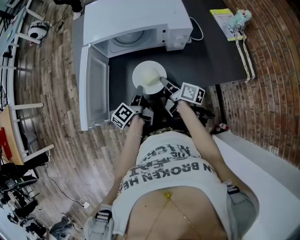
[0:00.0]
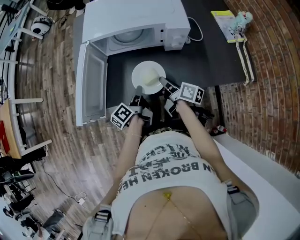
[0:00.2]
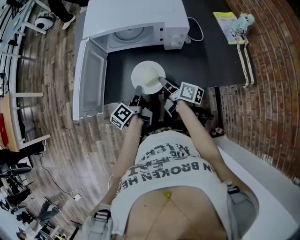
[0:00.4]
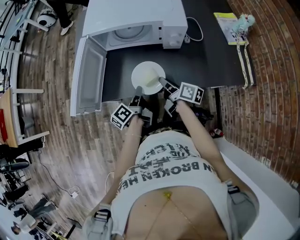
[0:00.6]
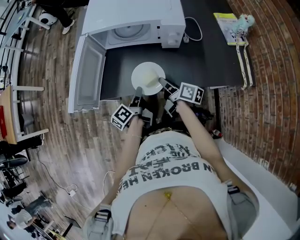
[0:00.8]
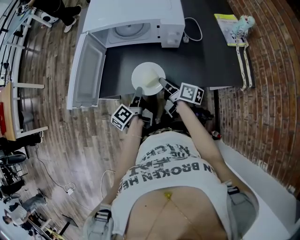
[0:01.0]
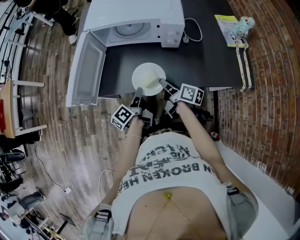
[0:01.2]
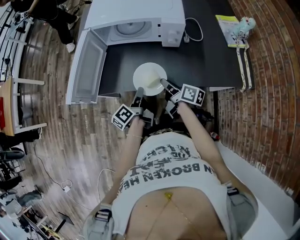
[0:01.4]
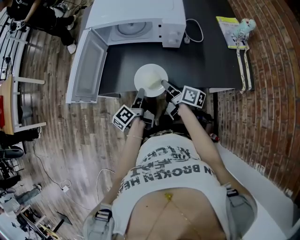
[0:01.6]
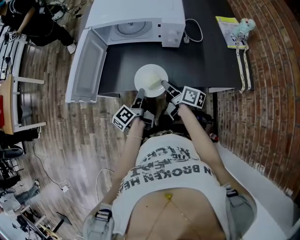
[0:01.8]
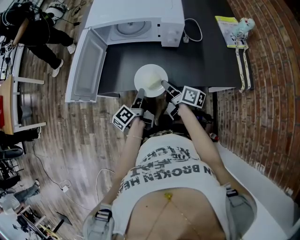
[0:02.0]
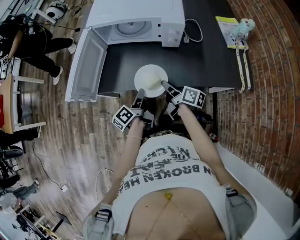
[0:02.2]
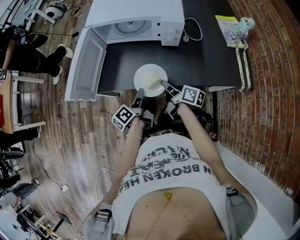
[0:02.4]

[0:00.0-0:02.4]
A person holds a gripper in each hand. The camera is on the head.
0.0 to 1.2 s: Both grippers move backward, approximately 5 cm.
1.2 to 2.4 s: The grippers stay close to where they were, moving slightly.

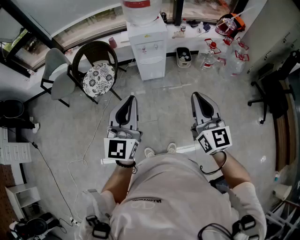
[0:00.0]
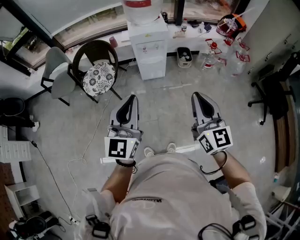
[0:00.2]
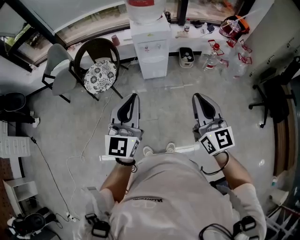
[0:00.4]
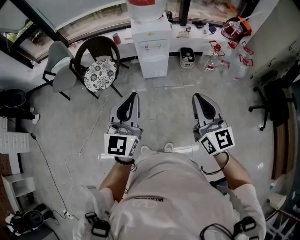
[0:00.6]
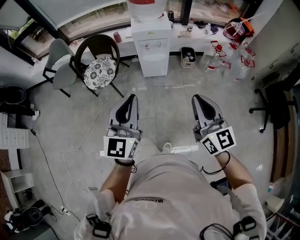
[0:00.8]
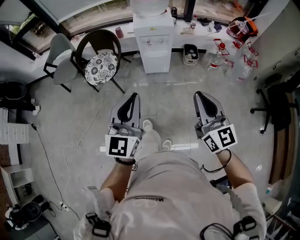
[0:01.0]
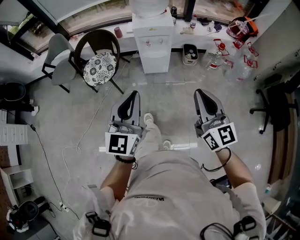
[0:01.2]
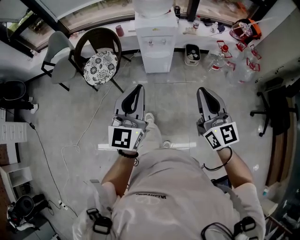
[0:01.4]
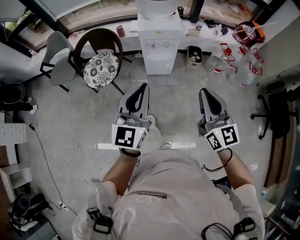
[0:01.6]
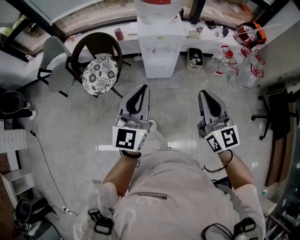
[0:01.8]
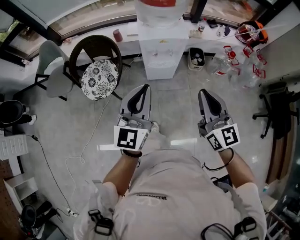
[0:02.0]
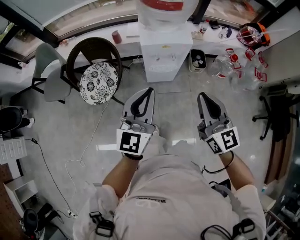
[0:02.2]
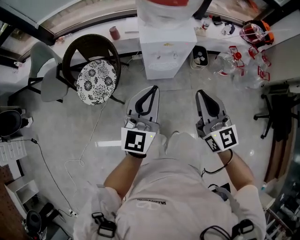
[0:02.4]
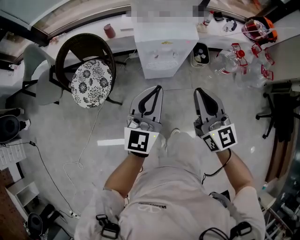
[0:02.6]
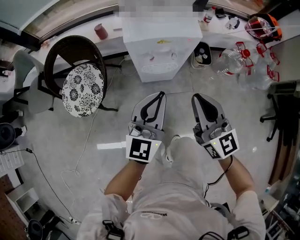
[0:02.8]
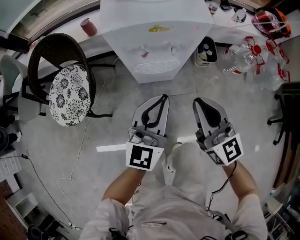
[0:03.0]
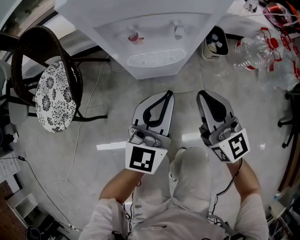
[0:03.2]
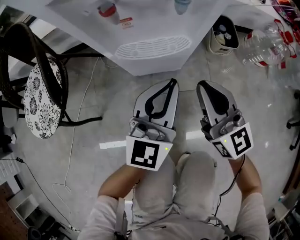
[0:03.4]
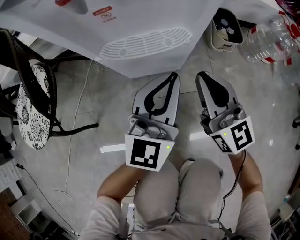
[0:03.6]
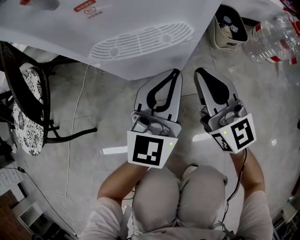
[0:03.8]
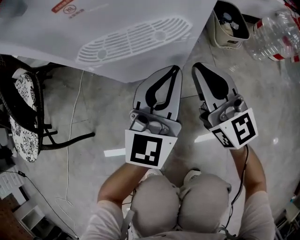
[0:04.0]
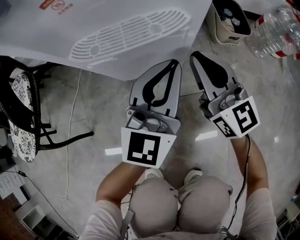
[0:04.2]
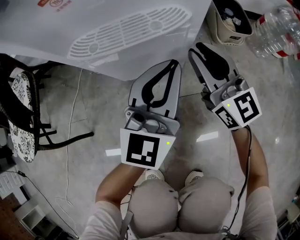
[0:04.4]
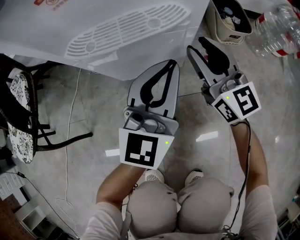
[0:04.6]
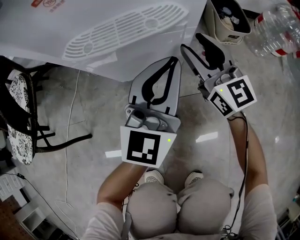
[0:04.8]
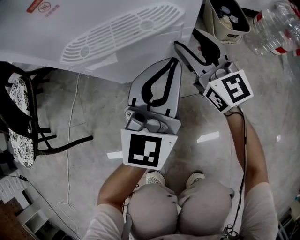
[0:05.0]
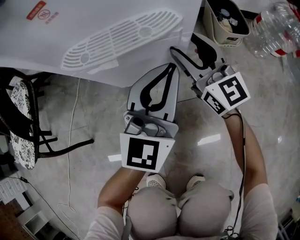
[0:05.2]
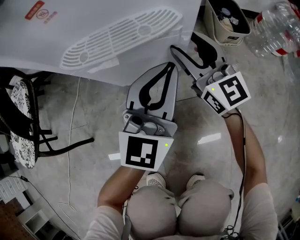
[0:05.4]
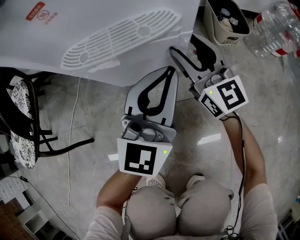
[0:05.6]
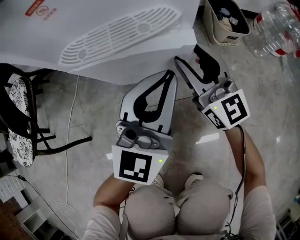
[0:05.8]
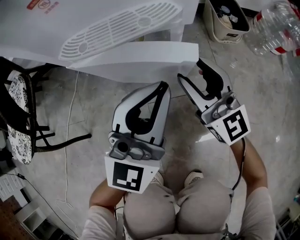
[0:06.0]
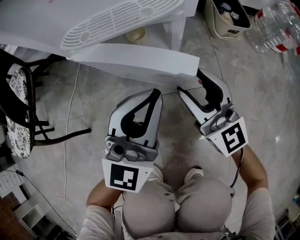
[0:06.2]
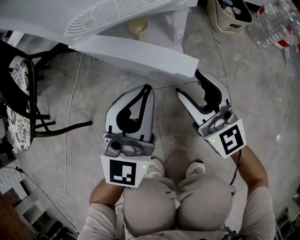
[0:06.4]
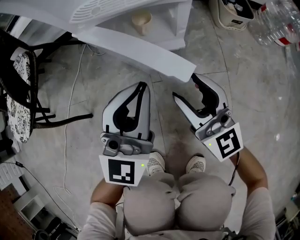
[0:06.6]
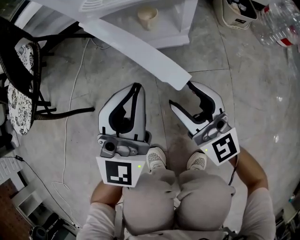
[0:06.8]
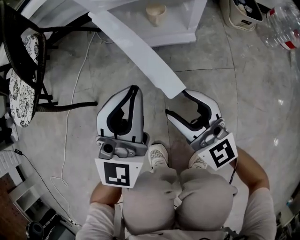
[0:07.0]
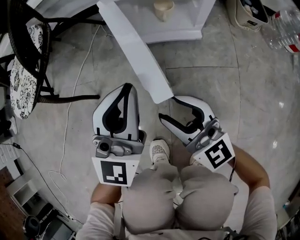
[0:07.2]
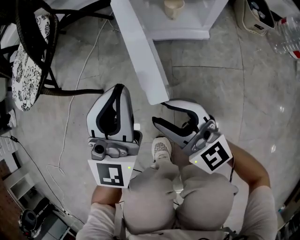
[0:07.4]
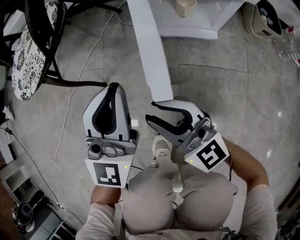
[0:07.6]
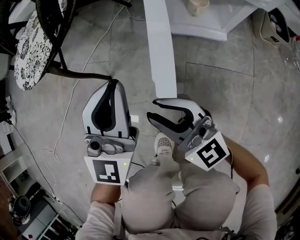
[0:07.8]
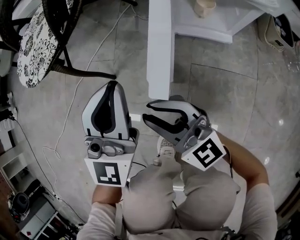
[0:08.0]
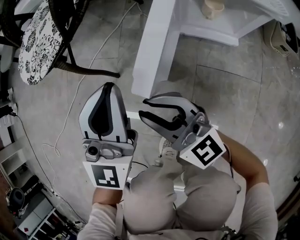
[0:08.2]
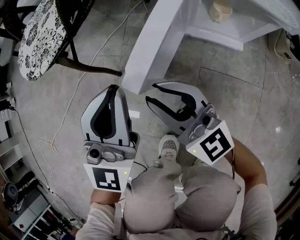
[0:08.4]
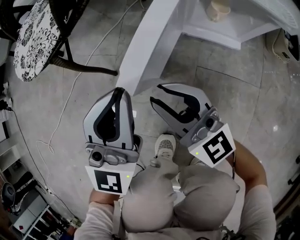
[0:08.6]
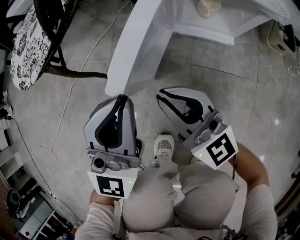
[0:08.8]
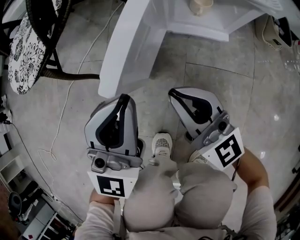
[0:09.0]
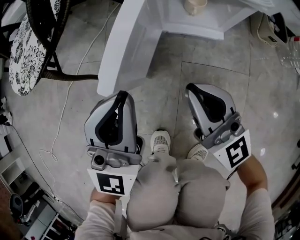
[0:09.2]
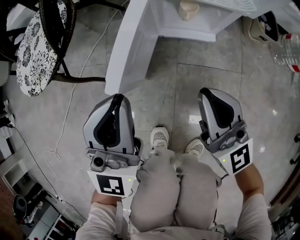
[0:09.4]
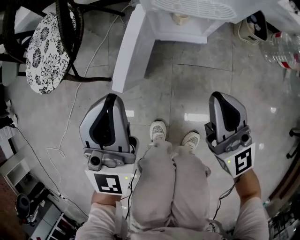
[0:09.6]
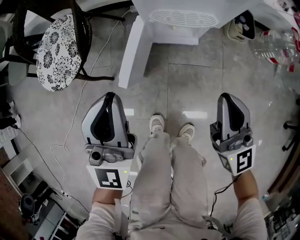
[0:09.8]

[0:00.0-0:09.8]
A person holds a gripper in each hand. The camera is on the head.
0.0 to 1.4 s: Both grippers travel together forward, roughly 10 cm.
1.4 to 2.8 s: The grippers both shift forward and downward by about 40 cm.
2.8 to 4.2 s: The two grippers go some 50 cm downward.
4.2 to 5.6 s: The right gripper goes approximately 5 cm forward, and opens its fingers.
5.6 to 7.0 s: The grippers both shift backward and to the left by about 25 cm.
7.0 to 8.4 s: Both grippers travel together to the left, about 20 cm. The right gripper turns by roughly 20 degrees, and closes its fingers. Meanwhile the left gripper rotates approximately 20 degrees.
8.4 to 9.8 s: The left gripper goes approximately 25 cm upward. The right gripper goes roughly 35 cm to the right and upward, changes its angle by about 40 degrees, and closes.

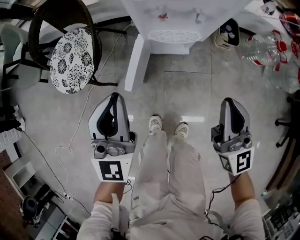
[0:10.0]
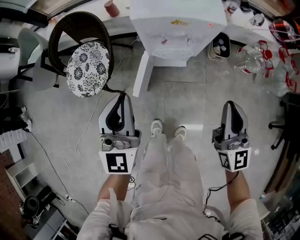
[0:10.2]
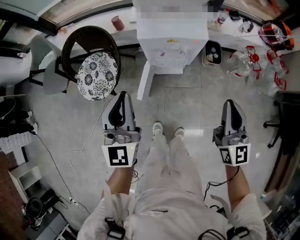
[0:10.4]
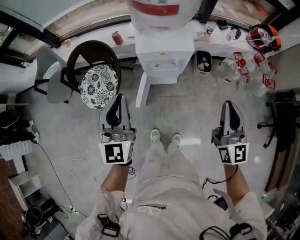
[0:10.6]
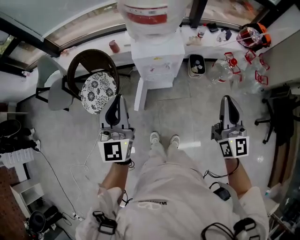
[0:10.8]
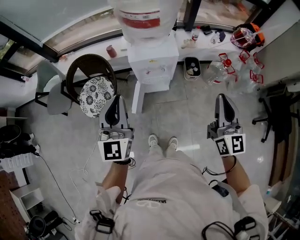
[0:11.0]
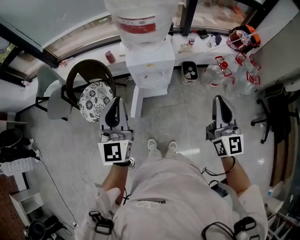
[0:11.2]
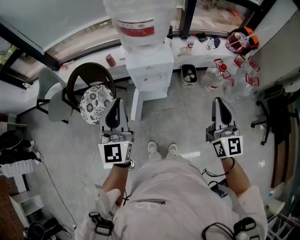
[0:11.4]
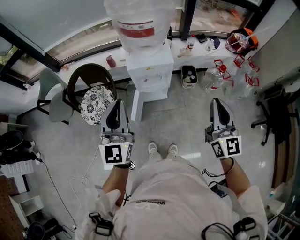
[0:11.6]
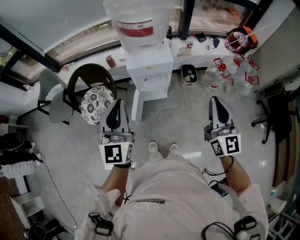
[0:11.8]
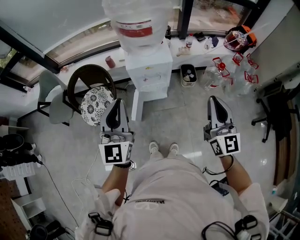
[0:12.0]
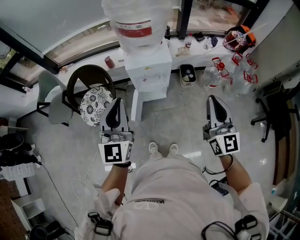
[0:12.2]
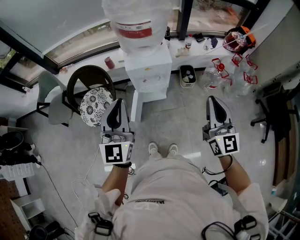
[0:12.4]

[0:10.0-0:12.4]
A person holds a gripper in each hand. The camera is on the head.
10.0 to 11.2 s: Both grippers move upward, some 40 cm.
11.2 to 12.4 s: The grippers move only a little.

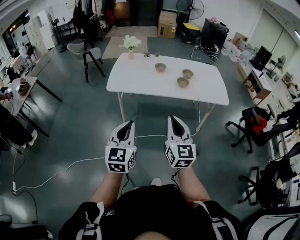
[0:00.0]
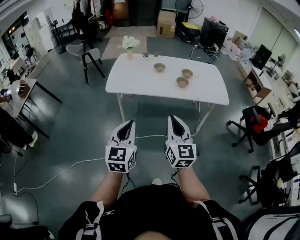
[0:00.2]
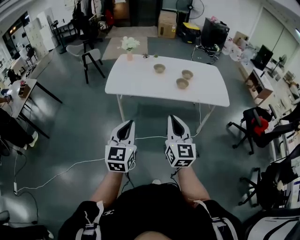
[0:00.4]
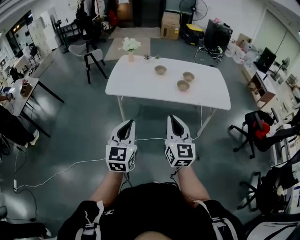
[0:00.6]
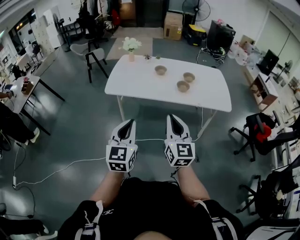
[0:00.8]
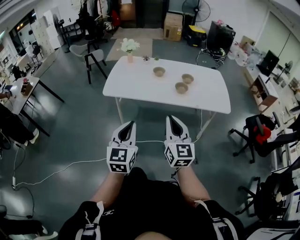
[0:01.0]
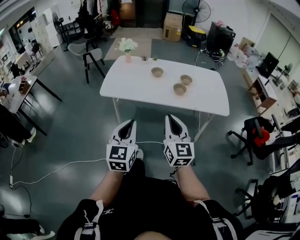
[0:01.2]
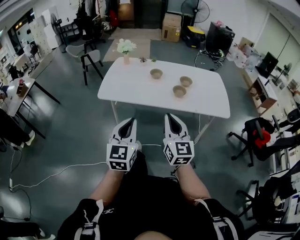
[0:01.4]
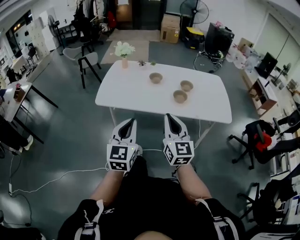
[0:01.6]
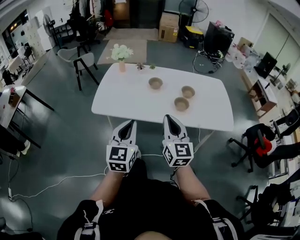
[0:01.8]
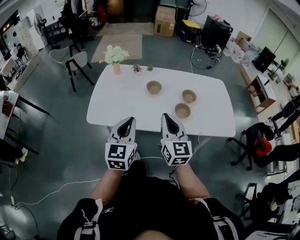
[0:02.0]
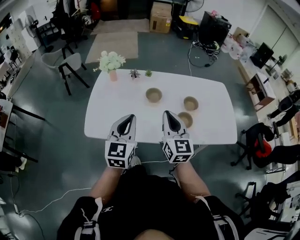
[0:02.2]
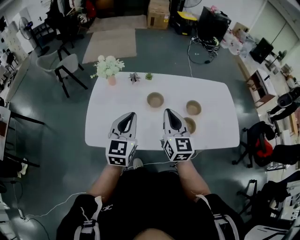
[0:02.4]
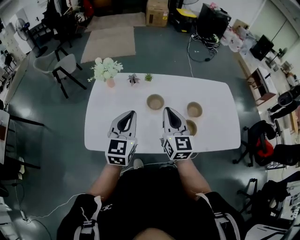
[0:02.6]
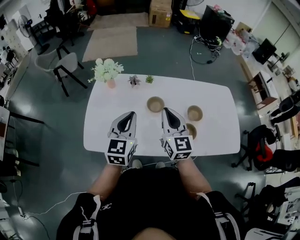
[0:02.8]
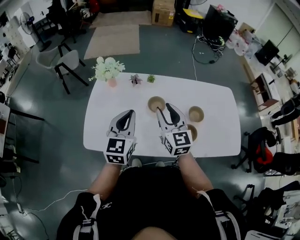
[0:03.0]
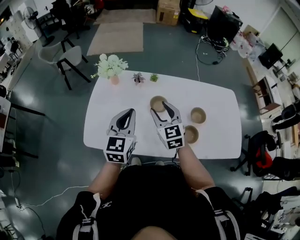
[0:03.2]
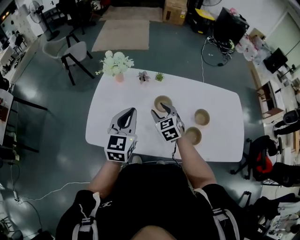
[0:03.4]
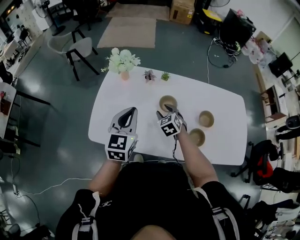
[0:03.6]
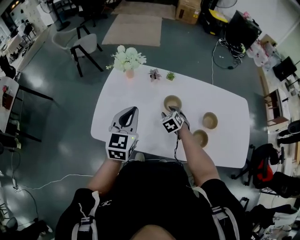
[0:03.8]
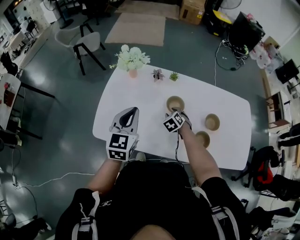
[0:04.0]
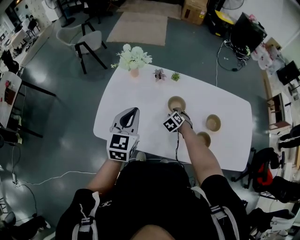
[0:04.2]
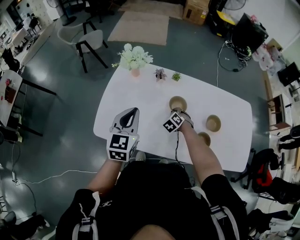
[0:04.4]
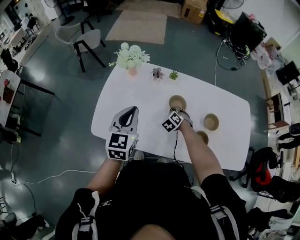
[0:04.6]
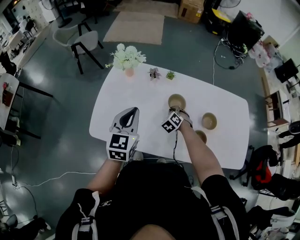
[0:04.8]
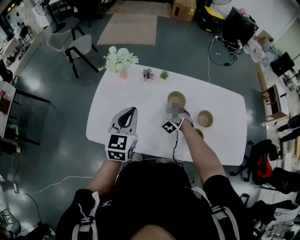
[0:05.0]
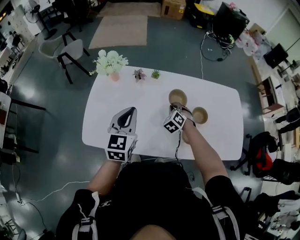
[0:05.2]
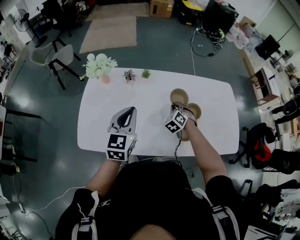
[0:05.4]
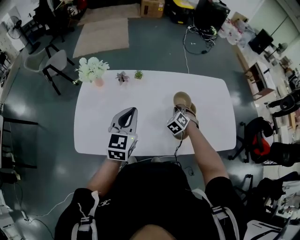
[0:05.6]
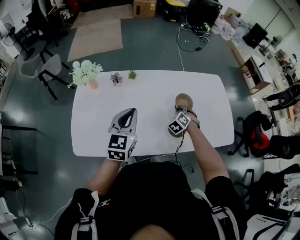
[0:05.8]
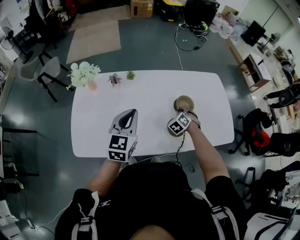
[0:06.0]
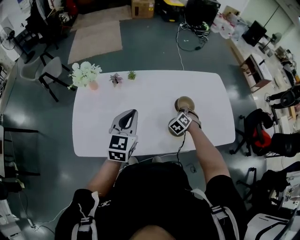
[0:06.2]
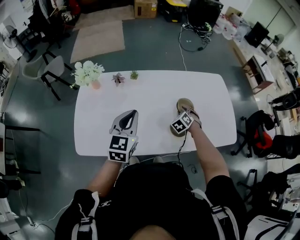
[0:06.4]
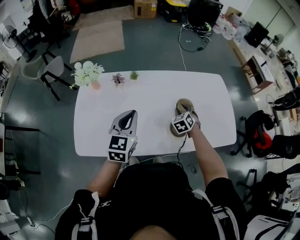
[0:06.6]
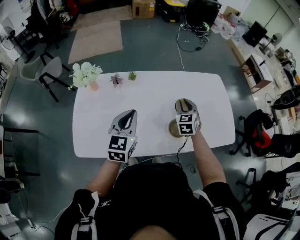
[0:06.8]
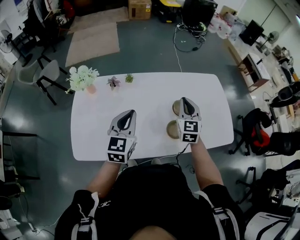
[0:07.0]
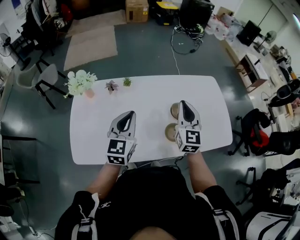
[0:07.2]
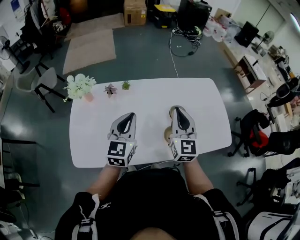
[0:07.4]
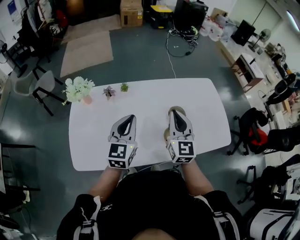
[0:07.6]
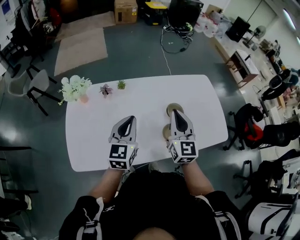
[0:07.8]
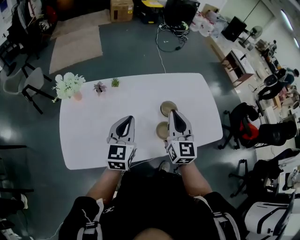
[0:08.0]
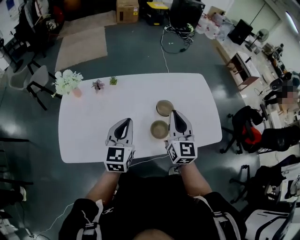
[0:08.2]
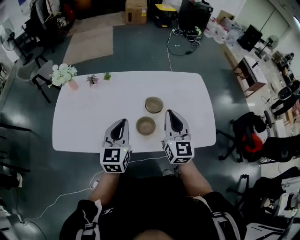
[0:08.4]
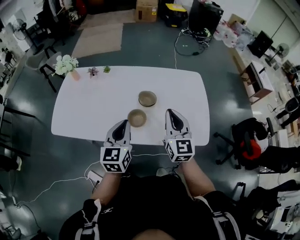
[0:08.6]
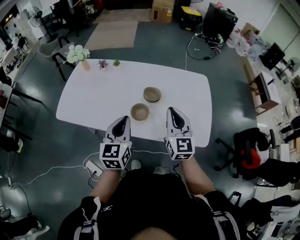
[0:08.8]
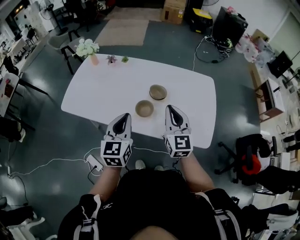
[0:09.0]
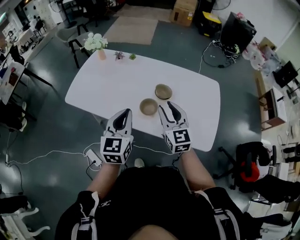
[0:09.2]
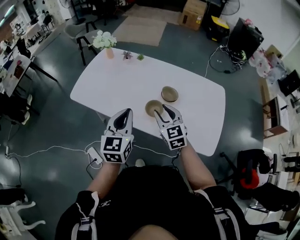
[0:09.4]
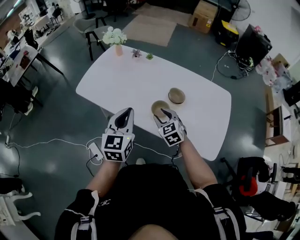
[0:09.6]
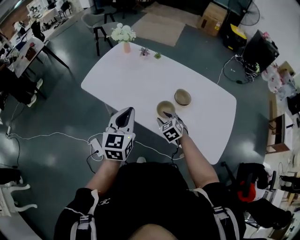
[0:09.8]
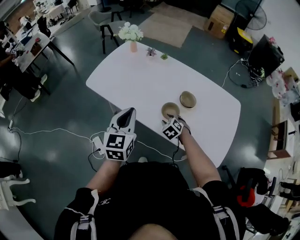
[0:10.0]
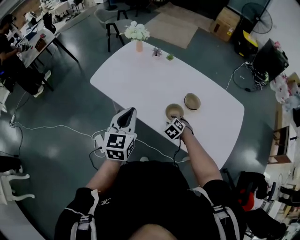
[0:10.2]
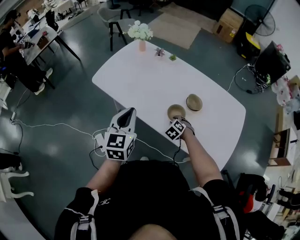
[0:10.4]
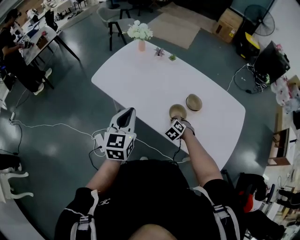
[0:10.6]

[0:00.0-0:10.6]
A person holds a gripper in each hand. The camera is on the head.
0.0 to 1.6 s: The grippers both shift forward and to the right by about 25 cm.
1.6 to 3.0 s: The two grippers travel together, forward, about 50 cm. The right gripper opens up.
3.0 to 4.6 s: The right gripper travels downward by about 30 cm, points its fingers some 50 degrees further downward, and closes, while the left gripper is displaced to the left by some 5 cm.
4.6 to 6.0 s: The right gripper travels to the right by some 25 cm, and changes its angle by about 20 degrees, while the left gripper heads to the right, covering roughly 15 cm, and turns by roughly 20 degrees.
6.0 to 7.6 s: The right gripper travels upward by approximately 25 cm, tilts its fingers approximately 50 degrees upward, and opens, then closes once more.
7.6 to 9.0 s: The left gripper shifts by approximately 30 cm, and rotates approximately 30 degrees. The right gripper moves some 25 cm, and swivels roughly 30 degrees.
9.0 to 10.6 s: The left gripper moves to the left, some 15 cm. Meanwhile the right gripper is displaced downward by about 30 cm, points its fingers approximately 60 degrees further downward, and opens, then closes once more.
